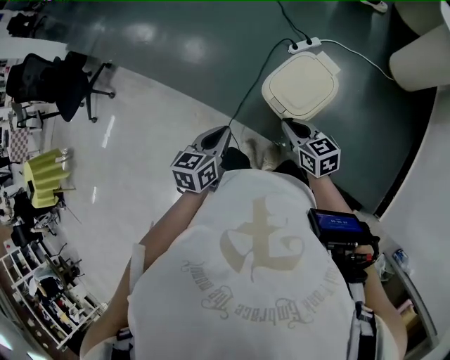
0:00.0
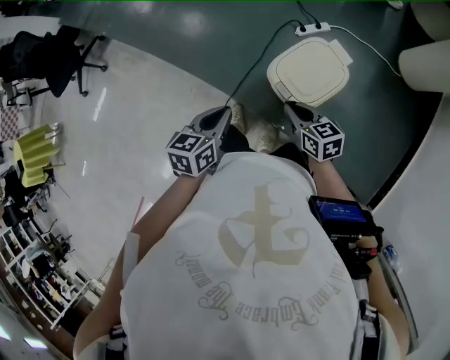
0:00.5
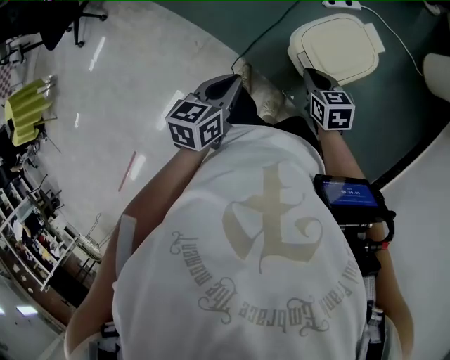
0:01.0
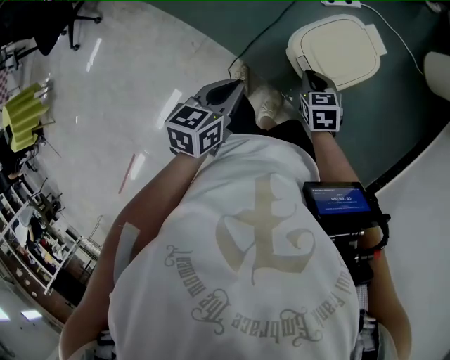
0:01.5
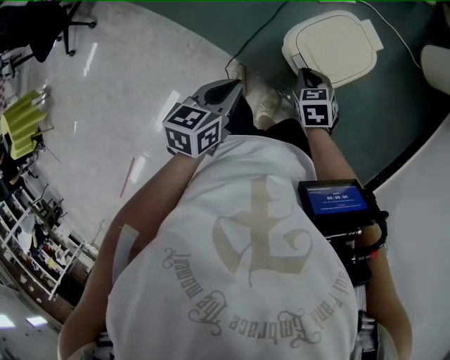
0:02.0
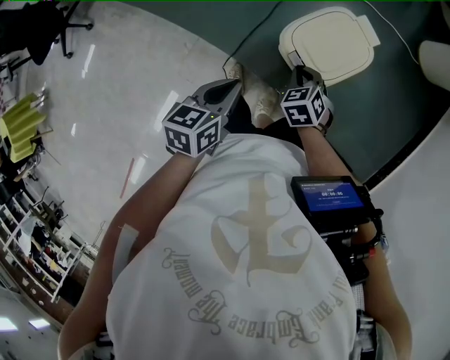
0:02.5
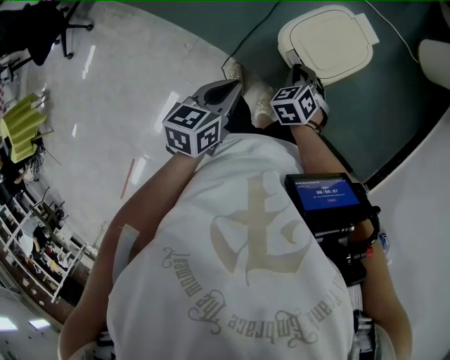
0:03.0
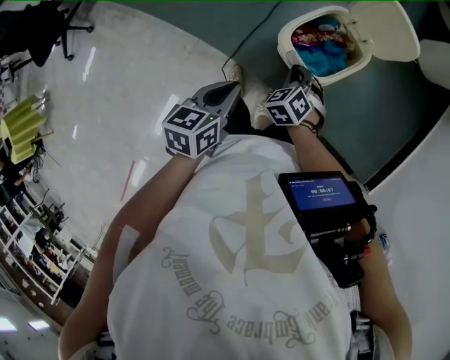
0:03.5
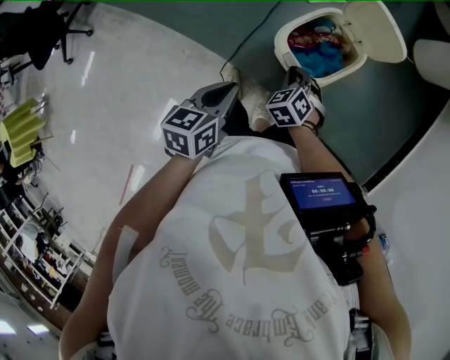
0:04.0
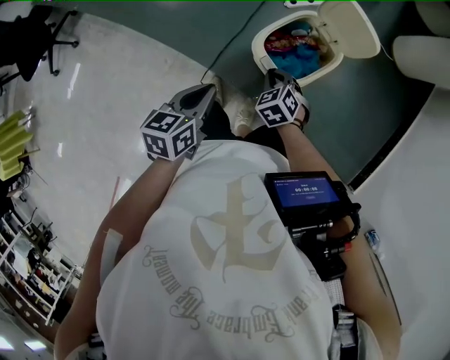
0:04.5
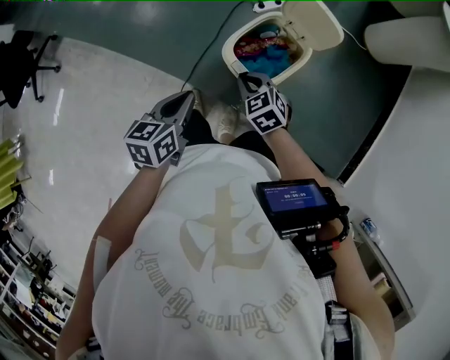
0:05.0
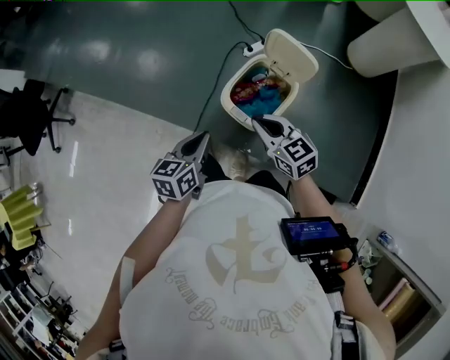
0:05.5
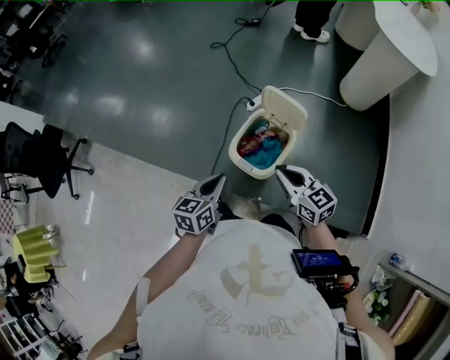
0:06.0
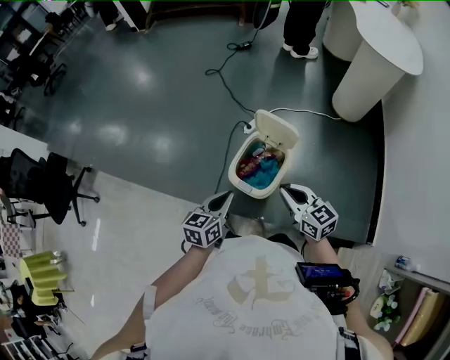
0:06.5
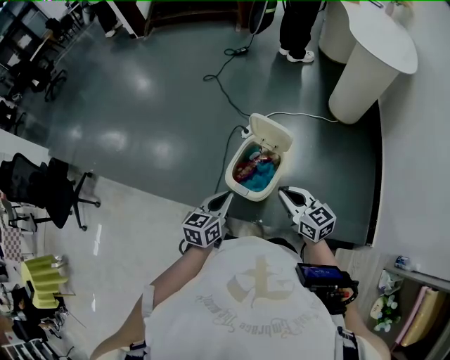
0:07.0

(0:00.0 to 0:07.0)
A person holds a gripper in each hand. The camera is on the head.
0:00.0 - 0:02.0: The left gripper travels downward by some 5 cm. Meanwhile the right gripper goes approximately 15 cm downward, and angles its fingers downward, by approximately 30 degrees.
0:02.0 - 0:03.5: The right gripper swivels about 30 degrees.
0:03.5 - 0:05.0: The right gripper heads upward, covering about 5 cm, and turns by about 30 degrees.
0:05.0 - 0:07.0: The left gripper moves to the right and upward, some 15 cm, while the right gripper goes about 20 cm upward and to the right, and tilts its fingers about 30 degrees upward.

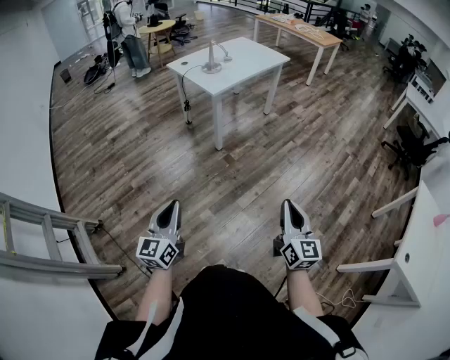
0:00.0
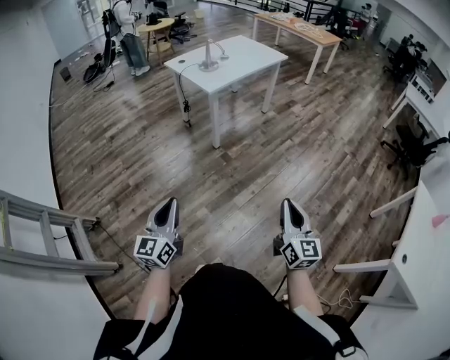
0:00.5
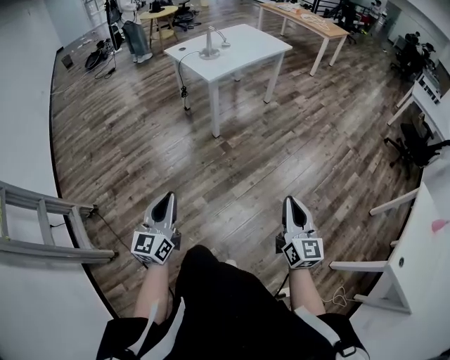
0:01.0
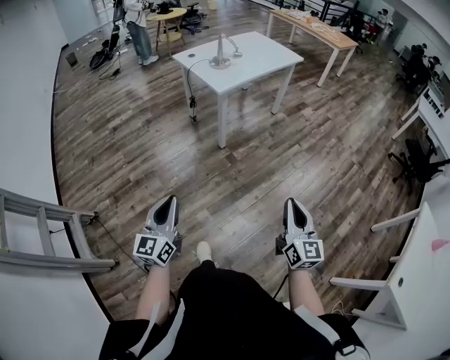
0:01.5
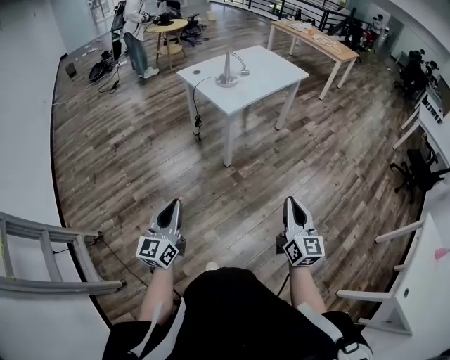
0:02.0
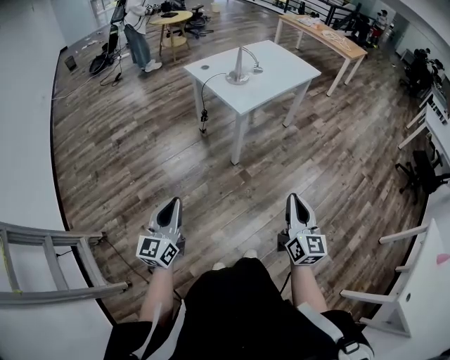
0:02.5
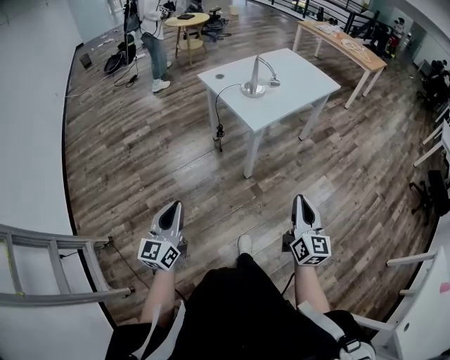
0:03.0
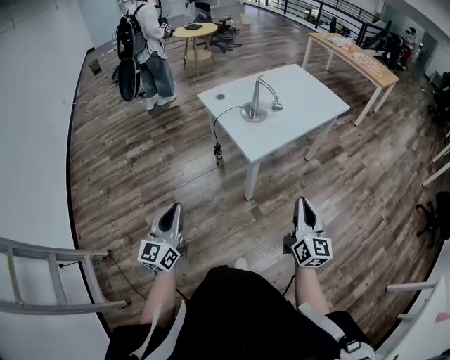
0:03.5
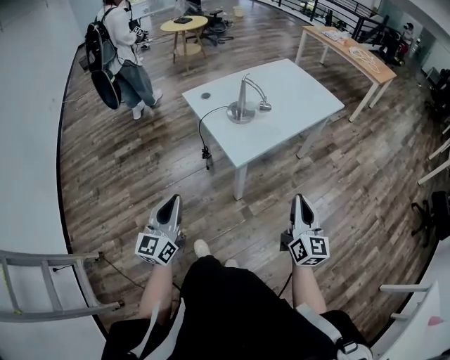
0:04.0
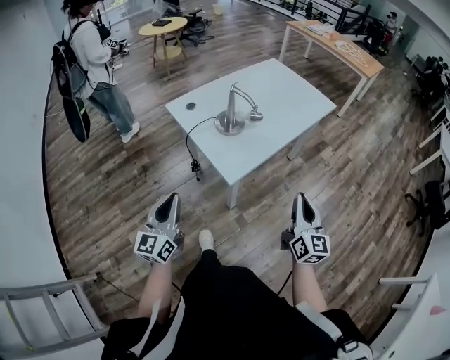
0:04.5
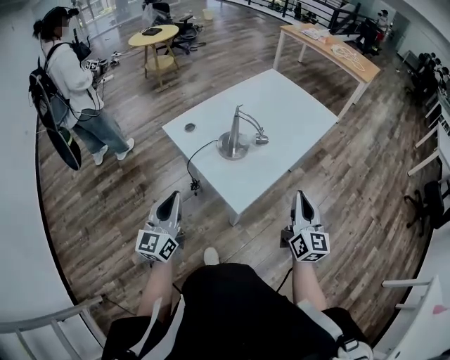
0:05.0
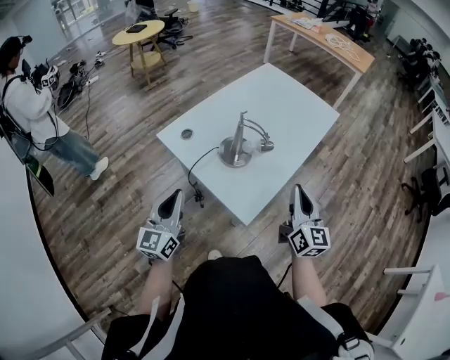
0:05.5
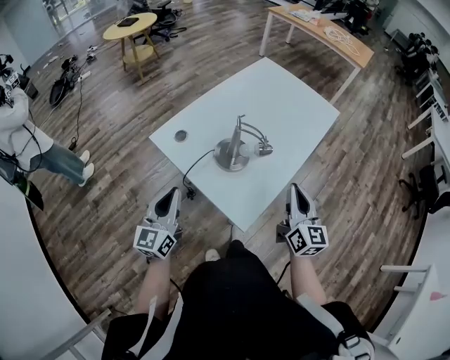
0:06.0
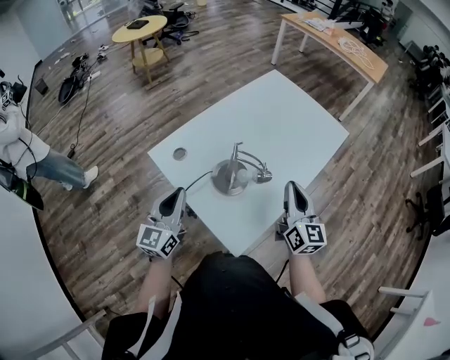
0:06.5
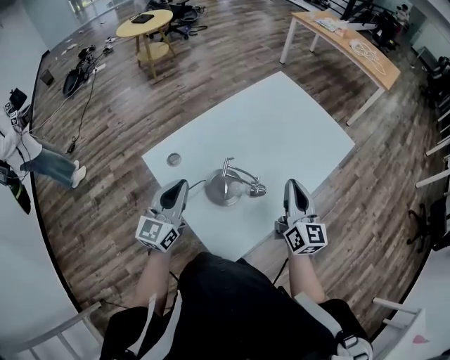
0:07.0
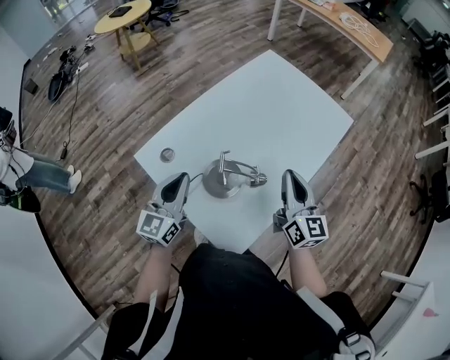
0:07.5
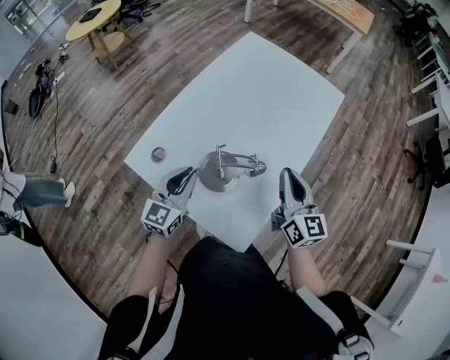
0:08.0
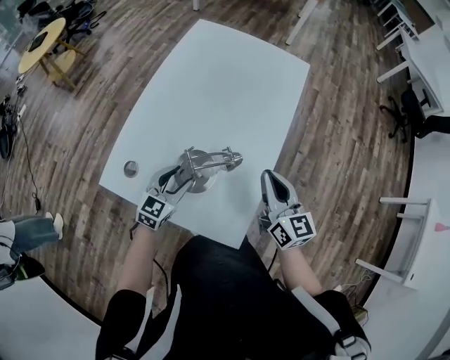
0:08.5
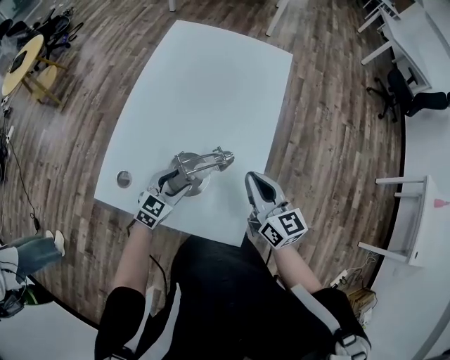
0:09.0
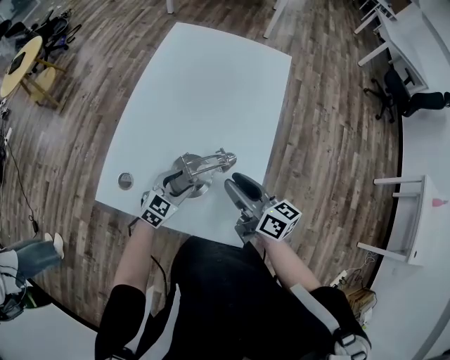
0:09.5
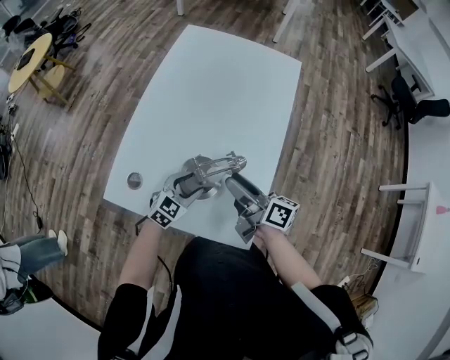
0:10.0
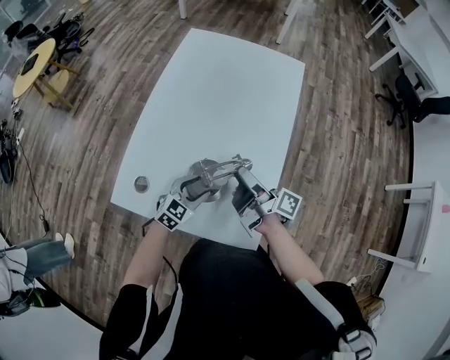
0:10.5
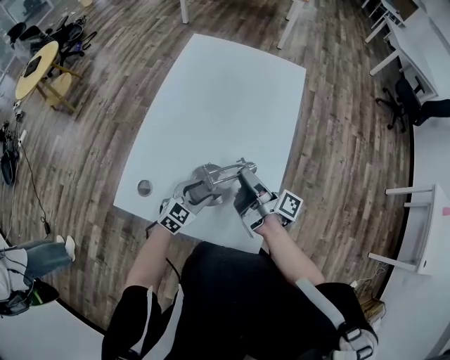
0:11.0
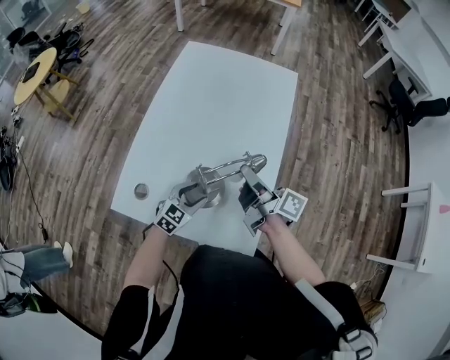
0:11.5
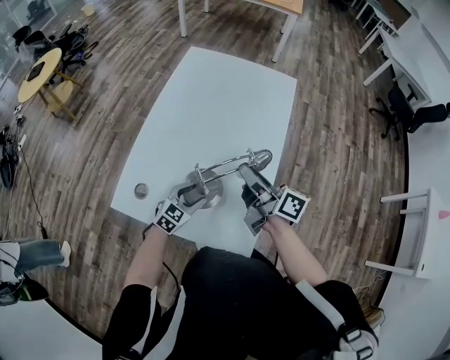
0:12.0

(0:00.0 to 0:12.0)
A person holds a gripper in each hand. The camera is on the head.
0:00.0 - 0:02.0: The grippers both shift forward by roughly 15 cm.
0:02.0 - 0:04.0: Both grippers travel together forward, approximately 35 cm.
0:04.0 - 0:06.0: Both grippers move forward, roughly 30 cm.
0:06.0 - 0:08.0: The right gripper is displaced forward by approximately 15 cm. The left gripper is displaced forward and to the right by about 20 cm, and swivels some 30 degrees.
0:08.0 - 0:10.0: The left gripper shifts some 15 cm downward and to the right, rotates roughly 40 degrees, and opens its fingers. Meanwhile the right gripper moves to the left and downward, approximately 10 cm, rotates around the line of its fingers by roughly 50 degrees, clockwise from behind, and opens.
0:10.0 - 0:12.0: The right gripper shifts about 5 cm upward, and closes up.

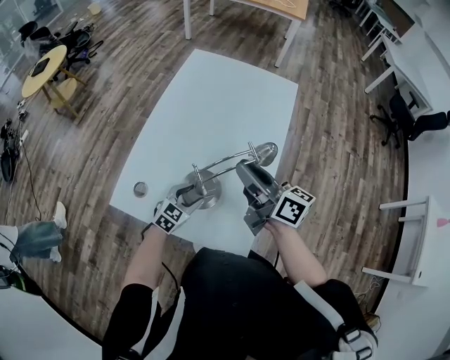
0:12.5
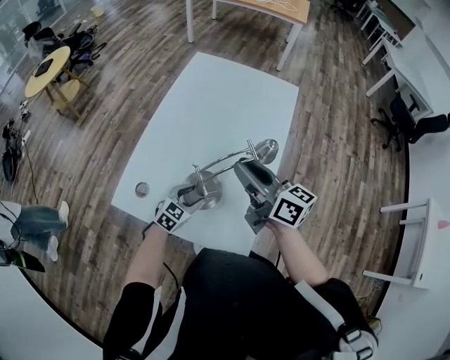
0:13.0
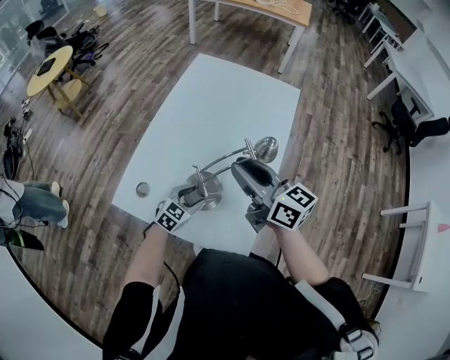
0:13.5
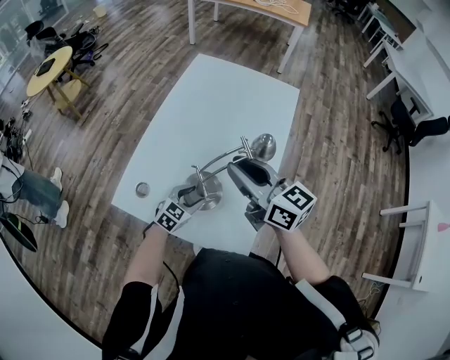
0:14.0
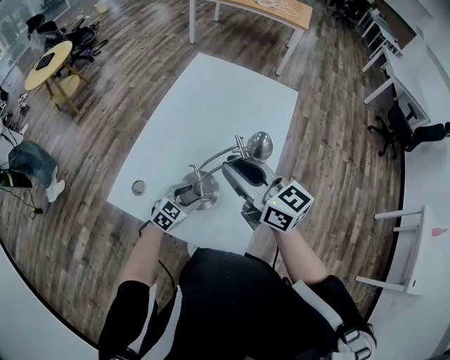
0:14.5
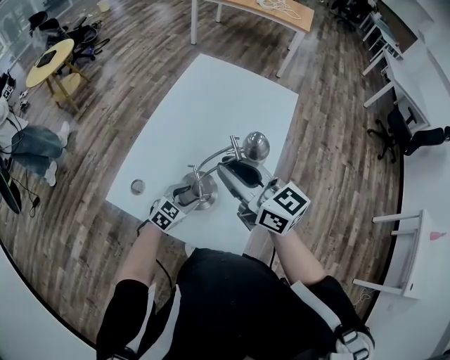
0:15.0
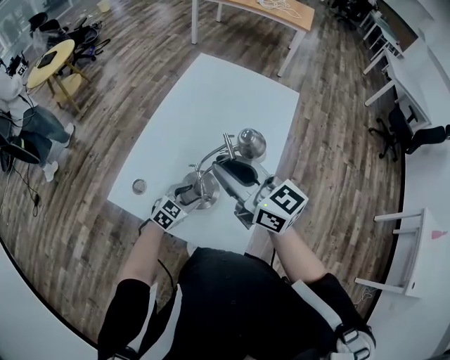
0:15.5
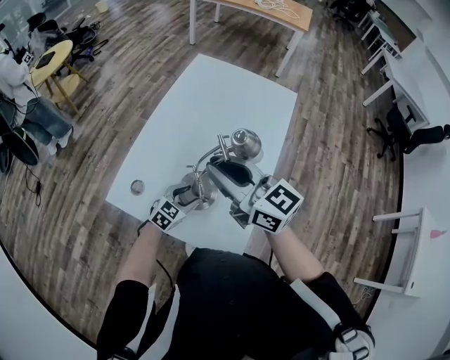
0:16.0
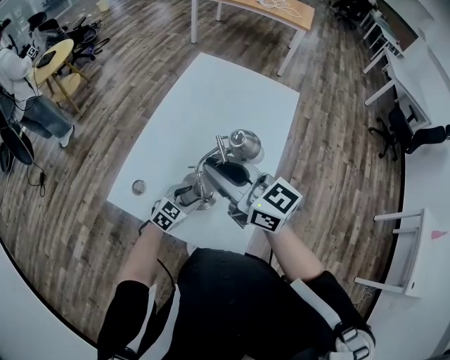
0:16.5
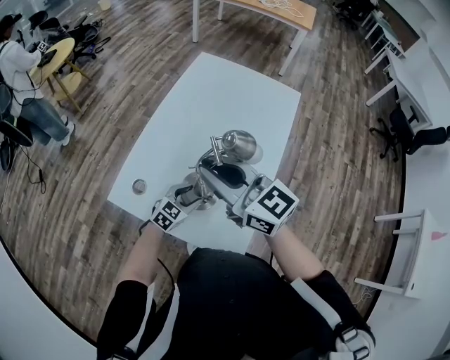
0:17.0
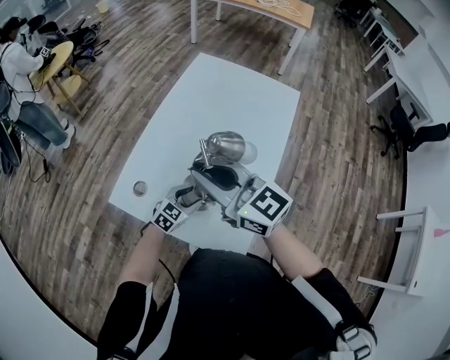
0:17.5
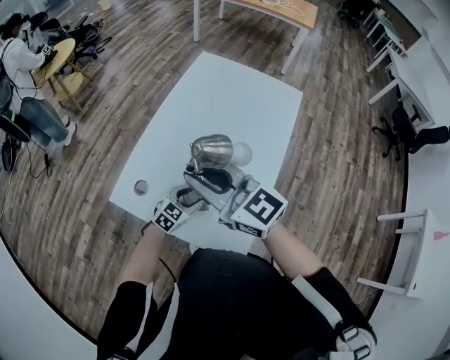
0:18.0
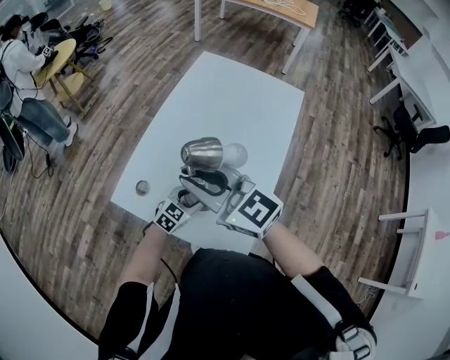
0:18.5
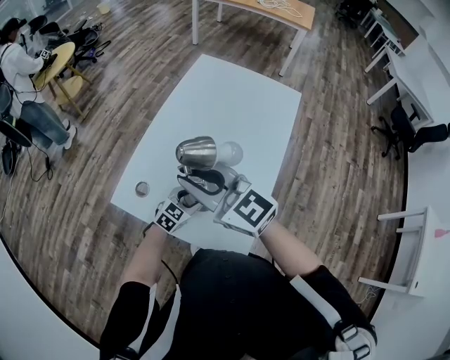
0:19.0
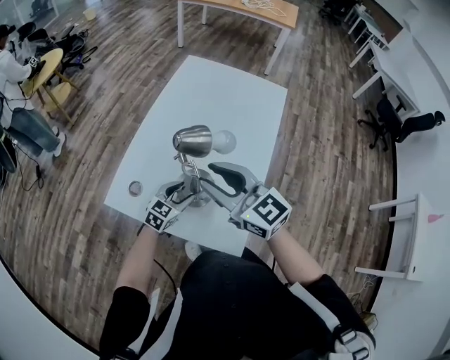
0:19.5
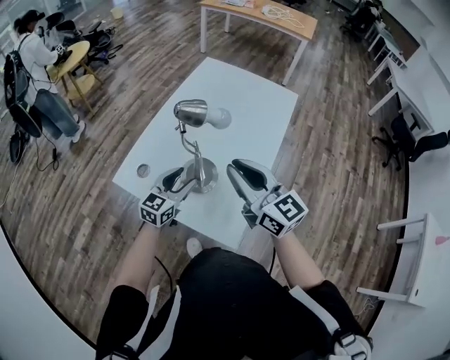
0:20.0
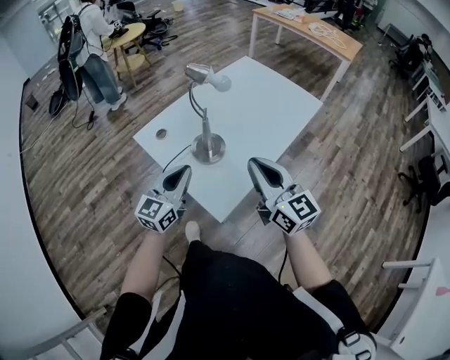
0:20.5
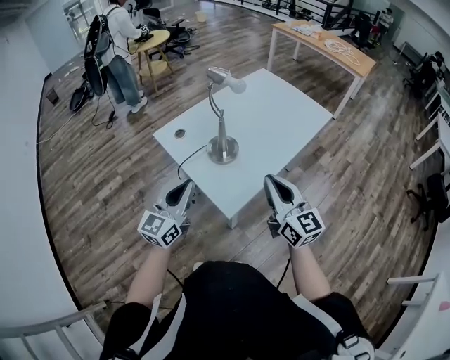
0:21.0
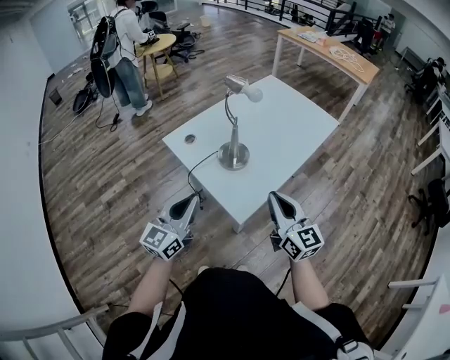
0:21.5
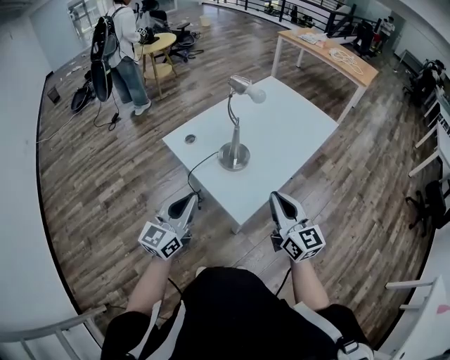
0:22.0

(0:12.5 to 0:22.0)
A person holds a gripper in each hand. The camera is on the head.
0:12.5 - 0:14.5: The right gripper goes some 5 cm upward, and turns by some 30 degrees.
0:14.5 - 0:16.5: The right gripper changes place by approximately 5 cm.
0:16.5 - 0:18.0: The right gripper shifts roughly 5 cm to the left.
0:18.0 - 0:20.0: The right gripper moves to the right, approximately 10 cm. The left gripper shifts approximately 15 cm upward, and rotates some 30 degrees.
0:20.0 - 0:22.0: The left gripper heads backward and upward, covering roughly 30 cm, turns by roughly 30 degrees, and closes. Meanwhile the right gripper heads backward, covering roughly 15 cm.
